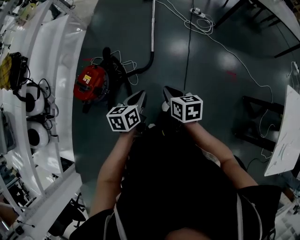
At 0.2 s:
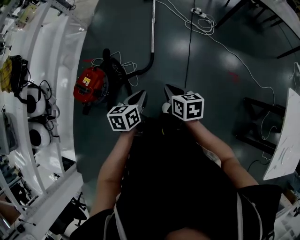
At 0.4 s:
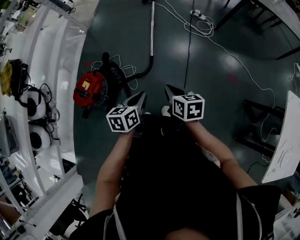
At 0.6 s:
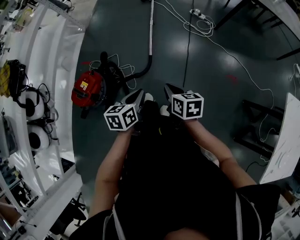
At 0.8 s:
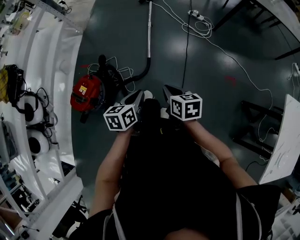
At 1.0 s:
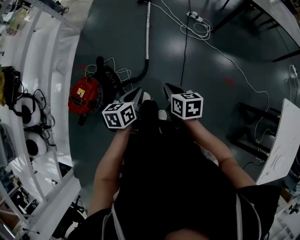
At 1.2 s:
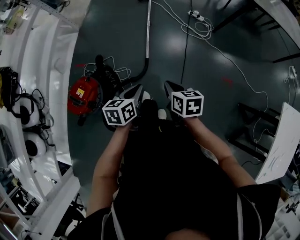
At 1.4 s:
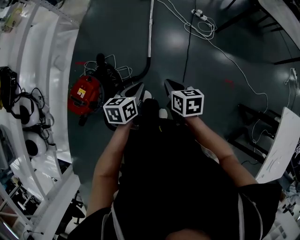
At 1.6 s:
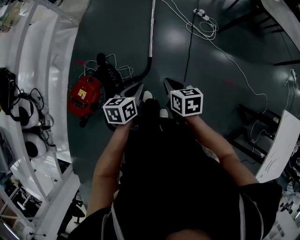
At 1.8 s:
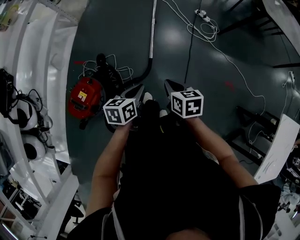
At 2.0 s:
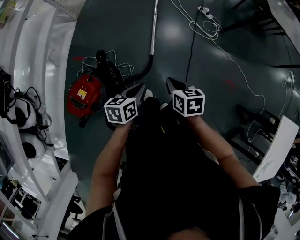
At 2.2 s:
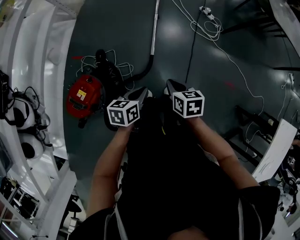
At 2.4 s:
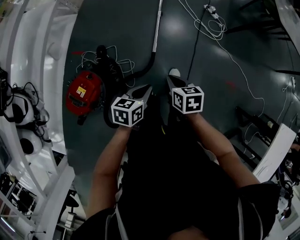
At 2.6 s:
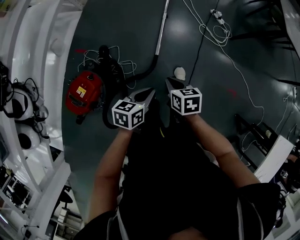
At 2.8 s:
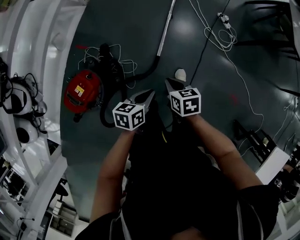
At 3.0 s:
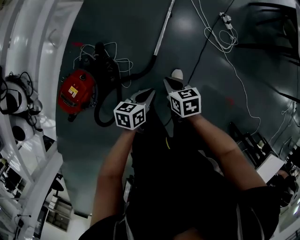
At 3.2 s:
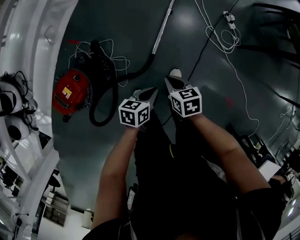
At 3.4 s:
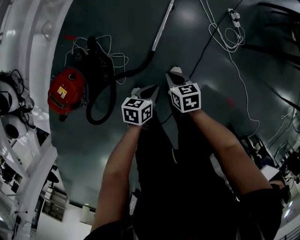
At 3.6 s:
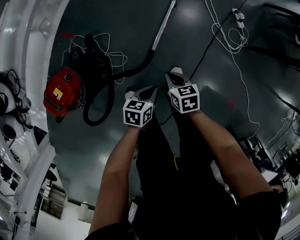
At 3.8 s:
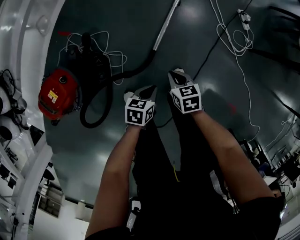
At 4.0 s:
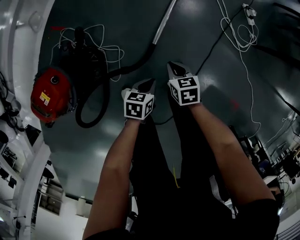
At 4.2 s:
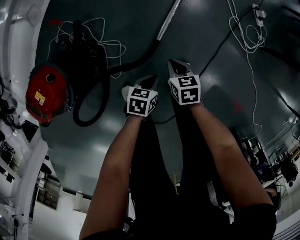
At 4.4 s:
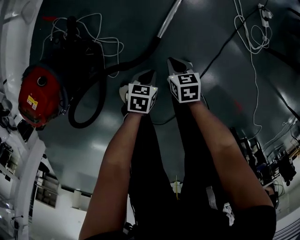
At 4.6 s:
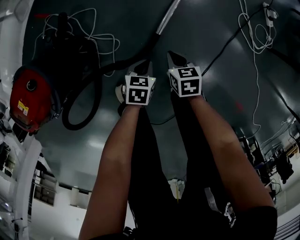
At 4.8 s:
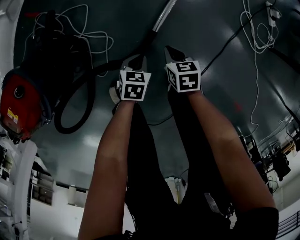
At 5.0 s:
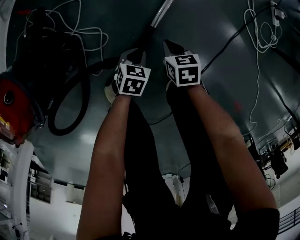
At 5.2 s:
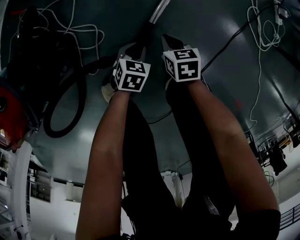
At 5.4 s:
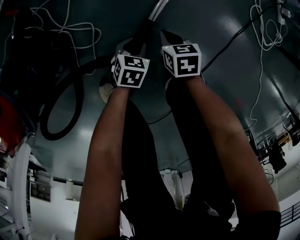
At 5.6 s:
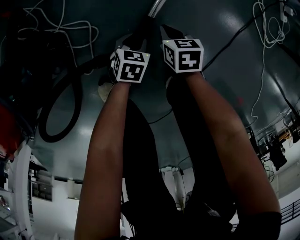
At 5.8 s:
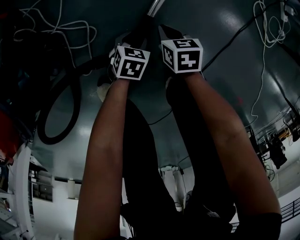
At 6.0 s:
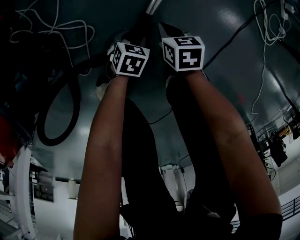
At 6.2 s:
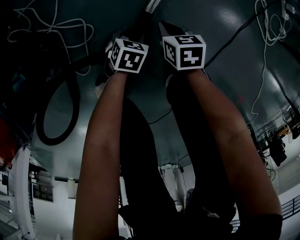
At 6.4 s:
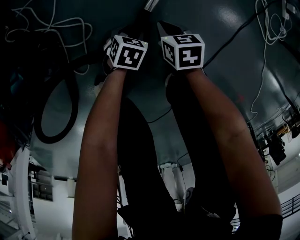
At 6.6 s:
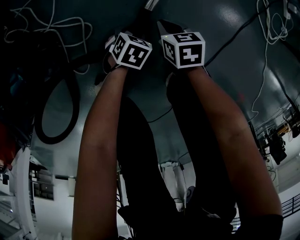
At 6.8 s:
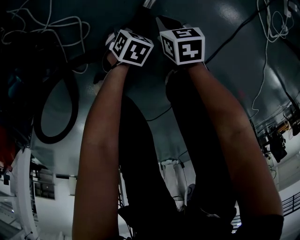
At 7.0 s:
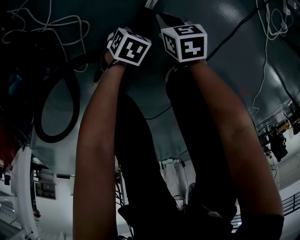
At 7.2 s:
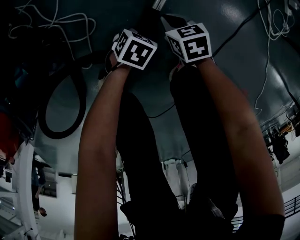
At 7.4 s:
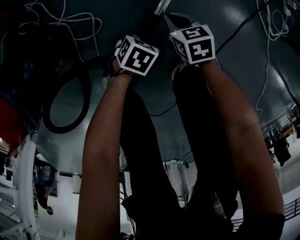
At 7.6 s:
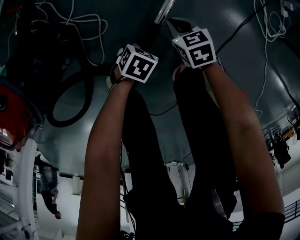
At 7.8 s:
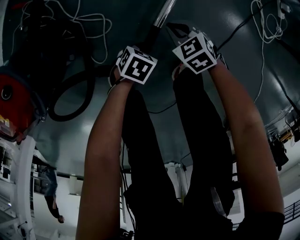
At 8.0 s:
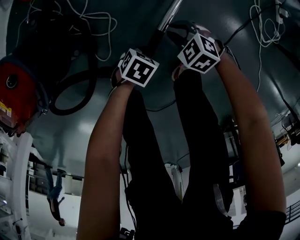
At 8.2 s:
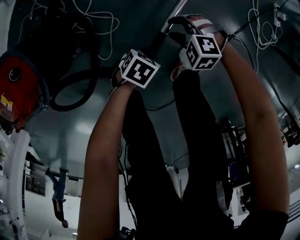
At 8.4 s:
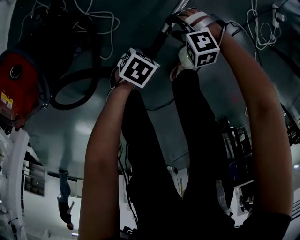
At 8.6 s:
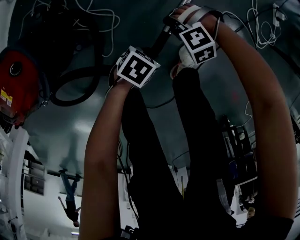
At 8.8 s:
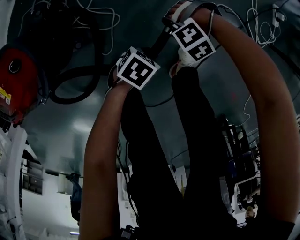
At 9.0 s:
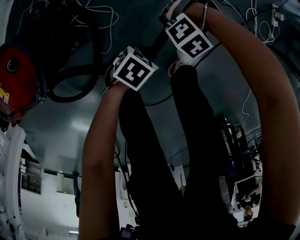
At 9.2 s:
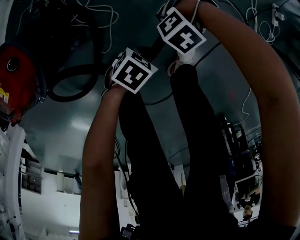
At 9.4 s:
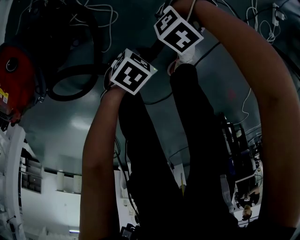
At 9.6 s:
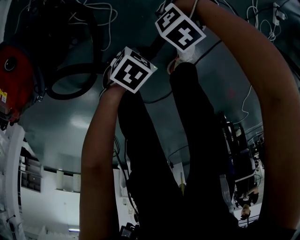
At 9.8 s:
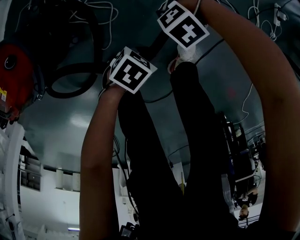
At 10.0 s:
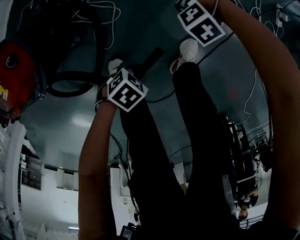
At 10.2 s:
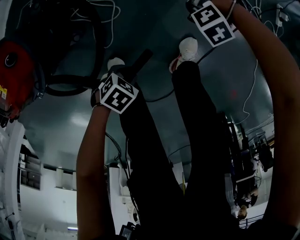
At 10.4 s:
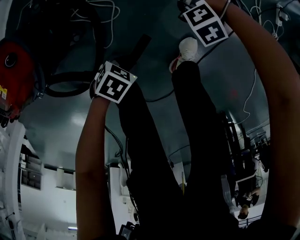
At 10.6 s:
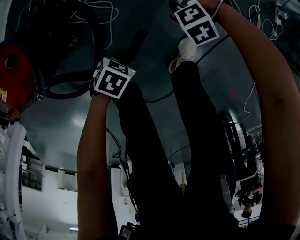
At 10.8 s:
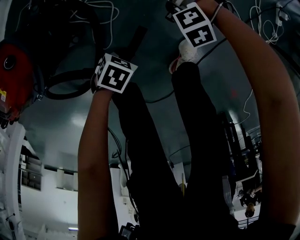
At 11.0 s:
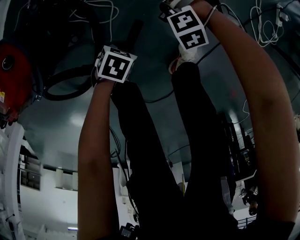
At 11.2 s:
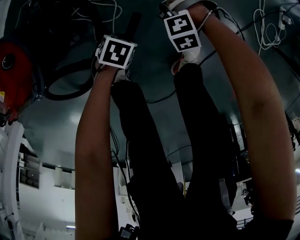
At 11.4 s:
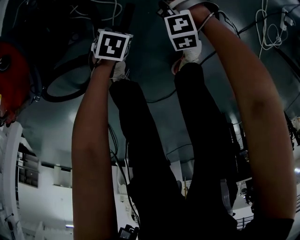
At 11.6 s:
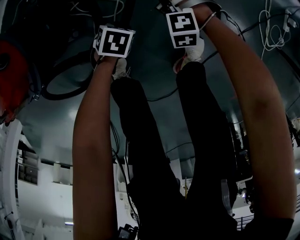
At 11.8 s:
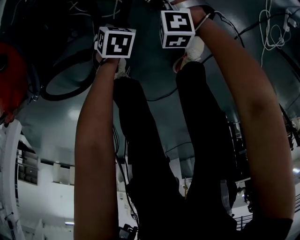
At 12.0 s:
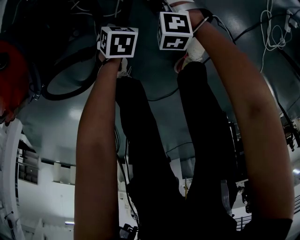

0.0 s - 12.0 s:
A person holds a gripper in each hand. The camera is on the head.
0.0 s - 1.6 s: The two grippers go some 20 cm forward.
1.6 s - 3.0 s: The left gripper shifts approximately 15 cm downward and forward. The right gripper heads forward and downward, covering approximately 20 cm, and rotates approximately 20 degrees.
3.0 s - 4.4 s: Both grippers travel together downward, approximately 35 cm. The left gripper changes its angle by roughly 20 degrees.
4.4 s - 6.0 s: Both grippers travel together downward, roughly 25 cm. The left gripper opens up.
6.0 s - 7.6 s: Both grippers travel together upward, some 5 cm. The right gripper swivels roughly 20 degrees.
7.6 s - 9.0 s: The right gripper goes about 10 cm upward, rolls counterclockwise, seen from behind, by approximately 110 degrees, and opens, while the left gripper is displaced upward by some 15 cm.
9.0 s - 10.4 s: The right gripper changes place by about 5 cm, while the left gripper ends up roughly 10 cm from where it was.
10.4 s - 12.0 s: The left gripper changes place by approximately 15 cm, and changes its angle by roughly 30 degrees, while the right gripper ends up approximately 15 cm from where it was, rotates some 50 degrees, and closes its fingers.

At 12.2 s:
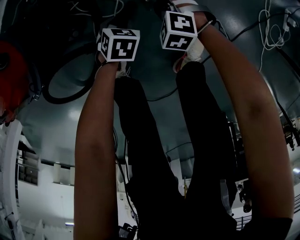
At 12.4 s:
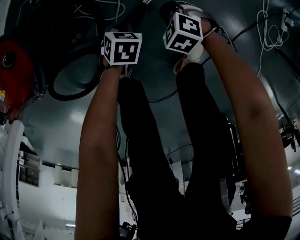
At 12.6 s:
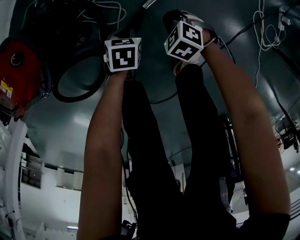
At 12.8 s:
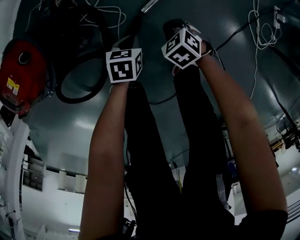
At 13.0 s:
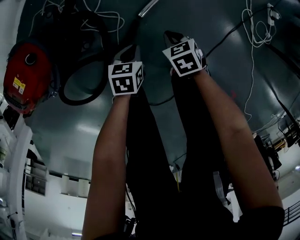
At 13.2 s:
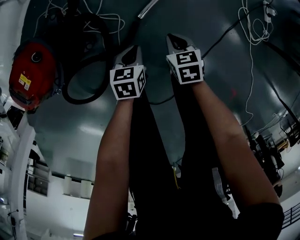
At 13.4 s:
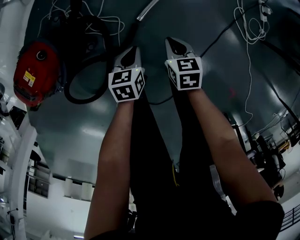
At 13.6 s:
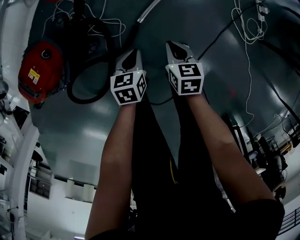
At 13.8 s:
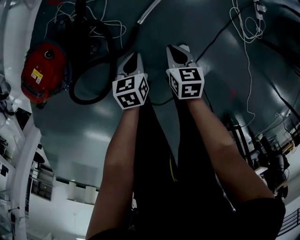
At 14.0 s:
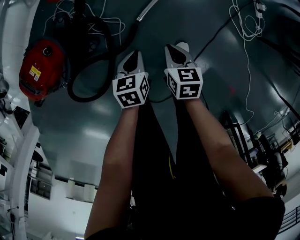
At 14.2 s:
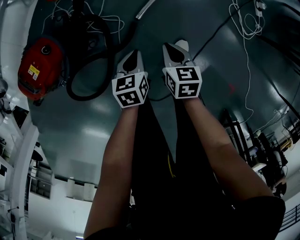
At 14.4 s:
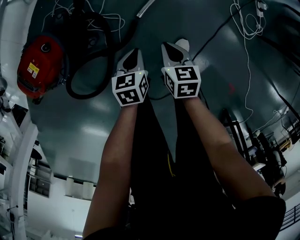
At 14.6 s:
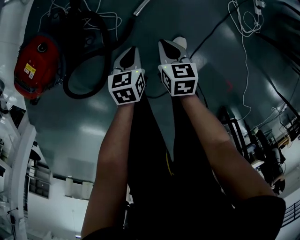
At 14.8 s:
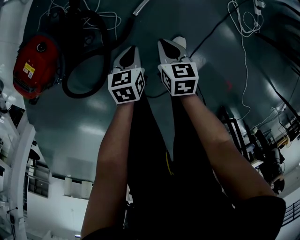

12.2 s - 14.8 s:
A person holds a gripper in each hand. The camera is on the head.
12.2 s - 13.4 s: Both grippers travel together upward, some 20 cm. The right gripper twists about 80 degrees clockwise, seen from behind; the left gripper swivels roughly 30 degrees, and closes its fingers.
13.4 s - 14.8 s: The right gripper heads upward, covering roughly 5 cm. Meanwhile the left gripper moves some 5 cm.

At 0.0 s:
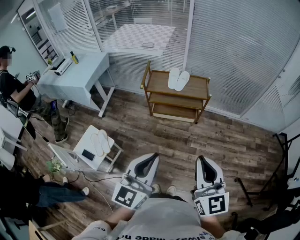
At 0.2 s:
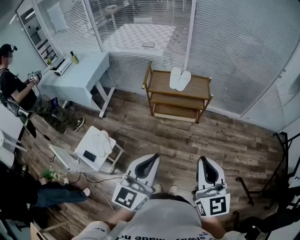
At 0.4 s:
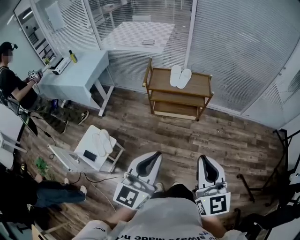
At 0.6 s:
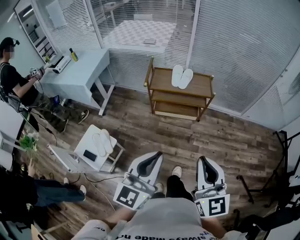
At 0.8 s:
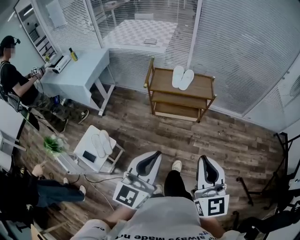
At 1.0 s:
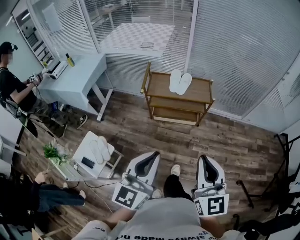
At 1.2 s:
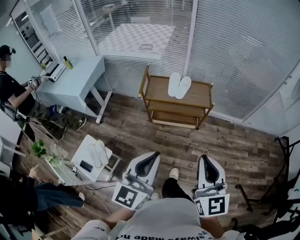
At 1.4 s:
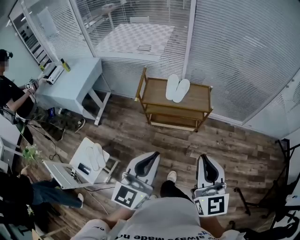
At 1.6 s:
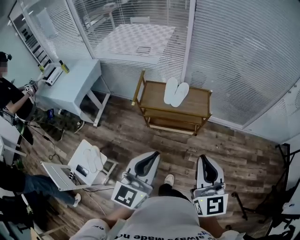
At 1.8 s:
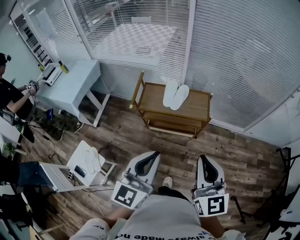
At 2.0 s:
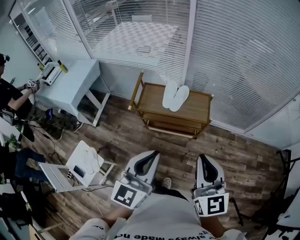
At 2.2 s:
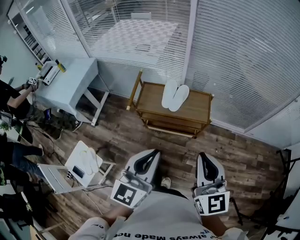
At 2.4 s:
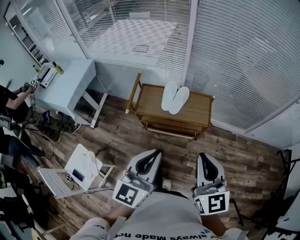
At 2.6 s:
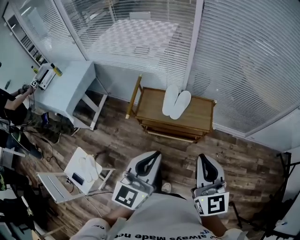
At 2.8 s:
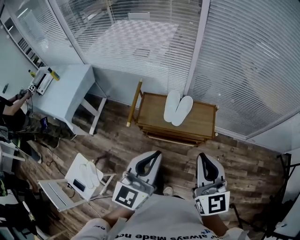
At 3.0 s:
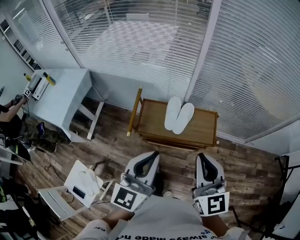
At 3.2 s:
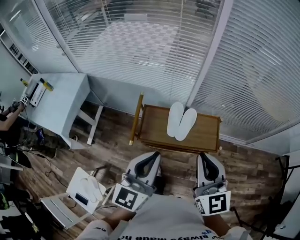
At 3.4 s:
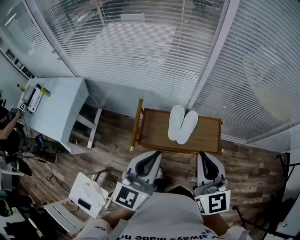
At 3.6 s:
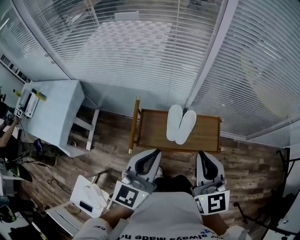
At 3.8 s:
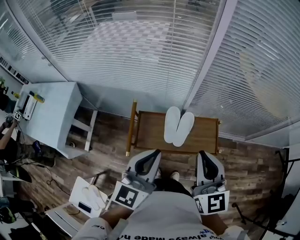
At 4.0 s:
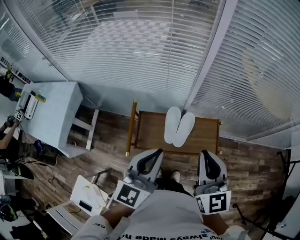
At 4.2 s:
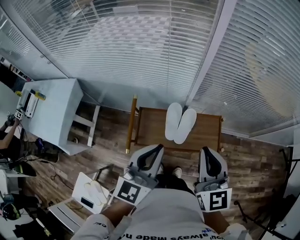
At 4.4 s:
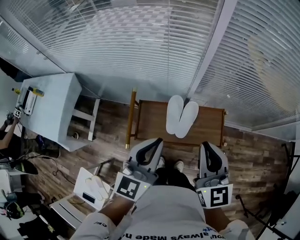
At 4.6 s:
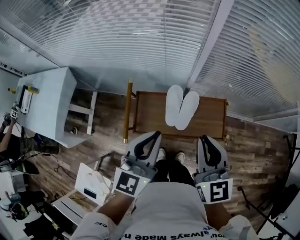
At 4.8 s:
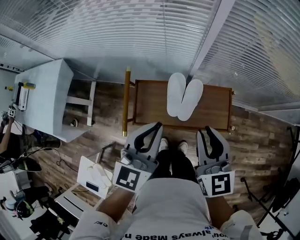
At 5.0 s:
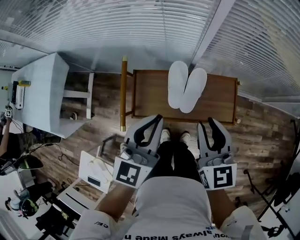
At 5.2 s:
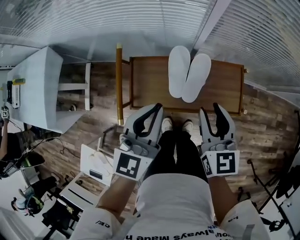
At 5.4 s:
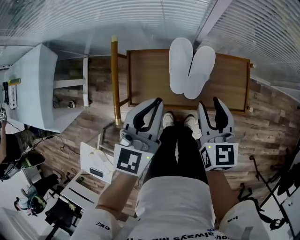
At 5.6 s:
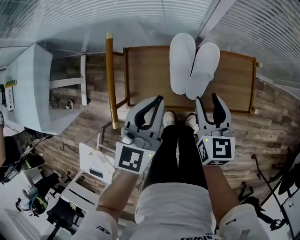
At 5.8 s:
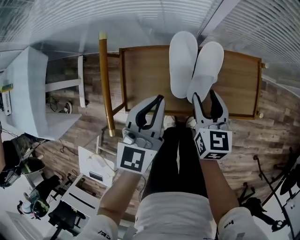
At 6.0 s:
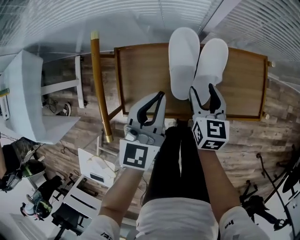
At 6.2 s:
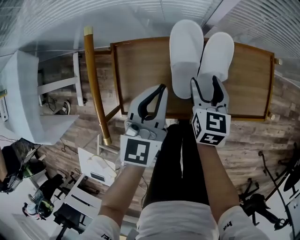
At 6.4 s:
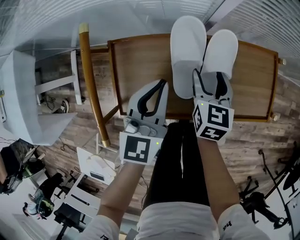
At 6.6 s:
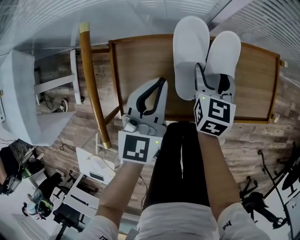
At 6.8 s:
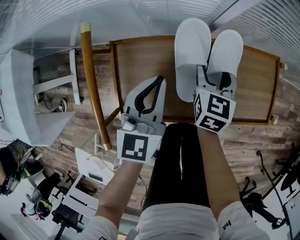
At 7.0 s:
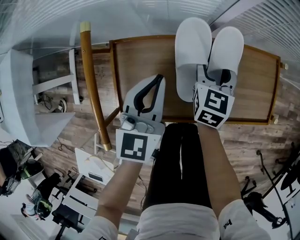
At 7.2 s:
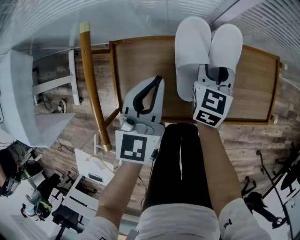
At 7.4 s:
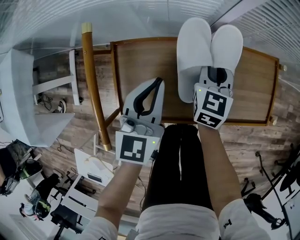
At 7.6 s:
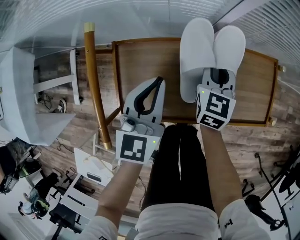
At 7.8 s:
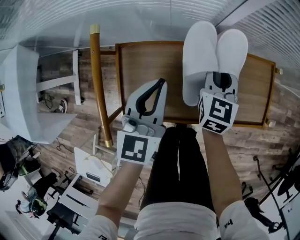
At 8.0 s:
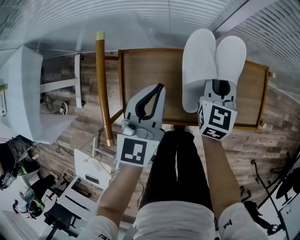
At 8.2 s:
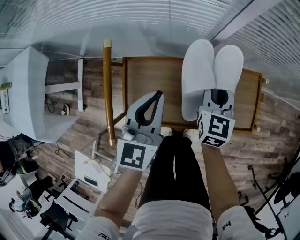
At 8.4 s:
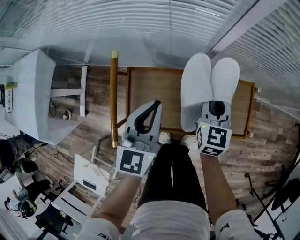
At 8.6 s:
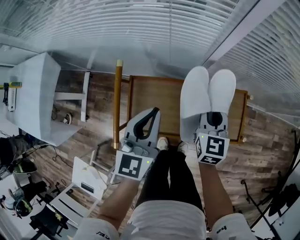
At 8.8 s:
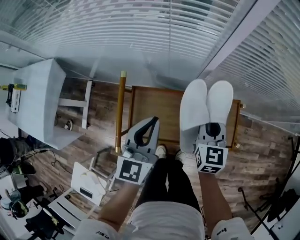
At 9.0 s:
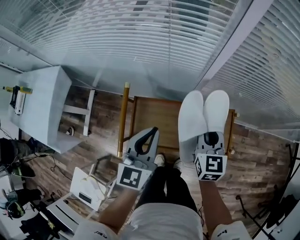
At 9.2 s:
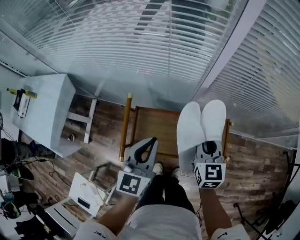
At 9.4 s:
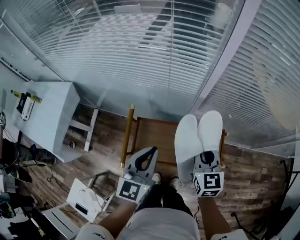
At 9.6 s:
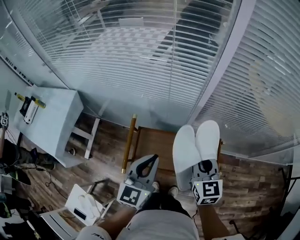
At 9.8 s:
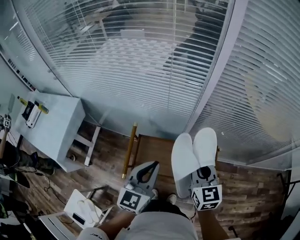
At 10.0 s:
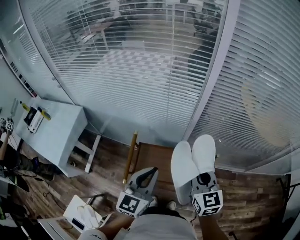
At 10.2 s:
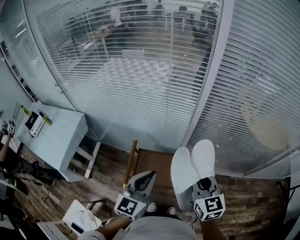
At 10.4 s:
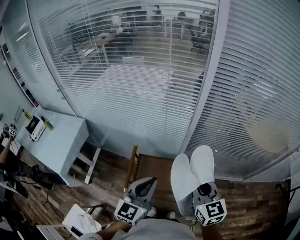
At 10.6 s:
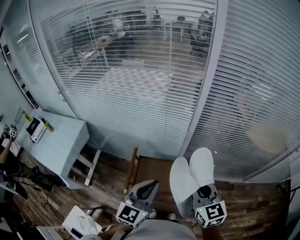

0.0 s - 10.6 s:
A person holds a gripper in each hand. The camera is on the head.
0.0 s - 1.6 s: The two grippers go about 25 cm forward.
1.6 s - 3.0 s: The grippers both shift forward by roughly 30 cm.
3.0 s - 4.6 s: The right gripper moves forward and downward, approximately 20 cm. The left gripper shifts roughly 20 cm forward.
4.6 s - 6.0 s: The grippers both shift downward by approximately 40 cm. The right gripper turns by approximately 30 degrees, and opens.
6.0 s - 7.6 s: The left gripper moves roughly 5 cm; the right gripper moves forward, about 10 cm, and closes up.
7.6 s - 9.0 s: The two grippers go approximately 25 cm upward.
9.0 s - 10.6 s: The grippers both shift upward and backward by about 25 cm.
